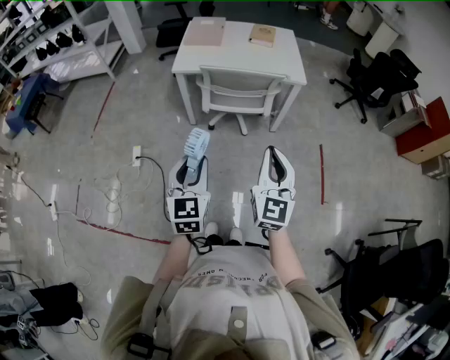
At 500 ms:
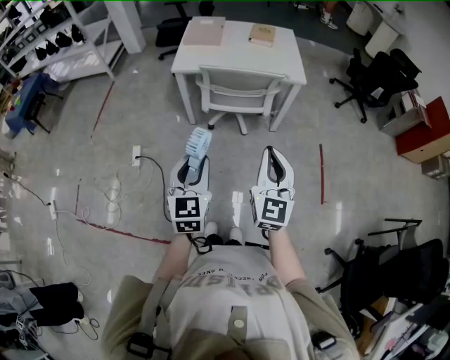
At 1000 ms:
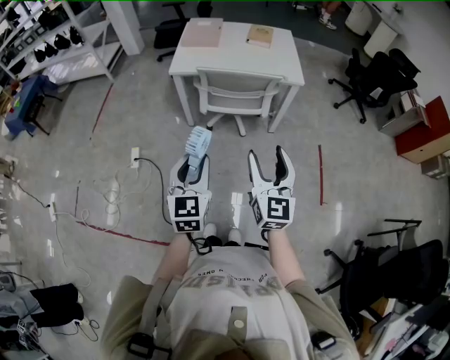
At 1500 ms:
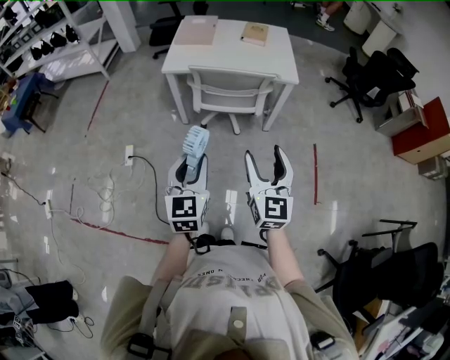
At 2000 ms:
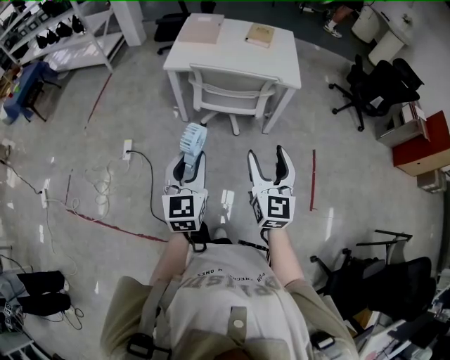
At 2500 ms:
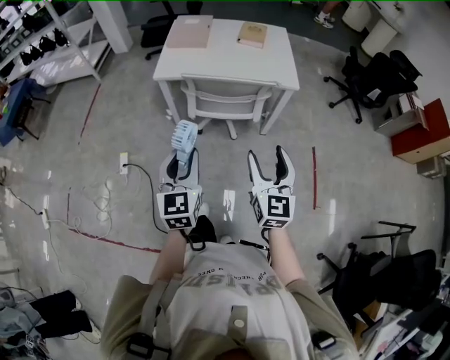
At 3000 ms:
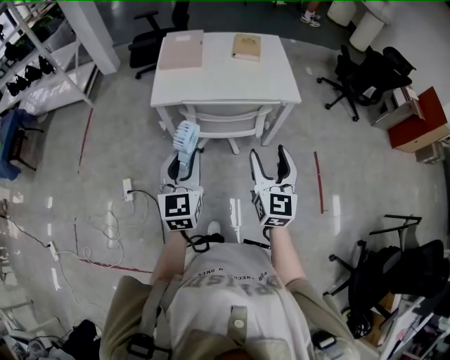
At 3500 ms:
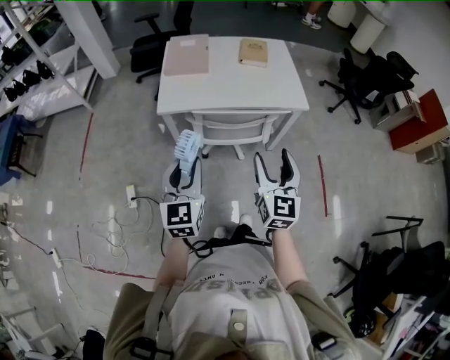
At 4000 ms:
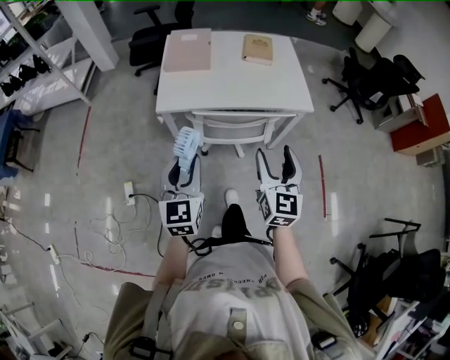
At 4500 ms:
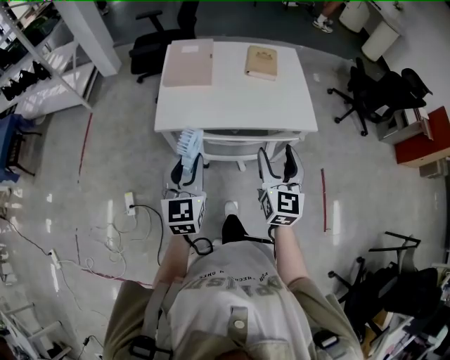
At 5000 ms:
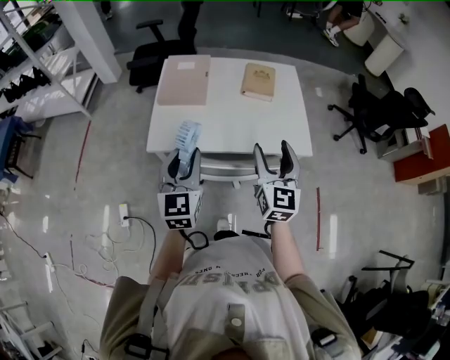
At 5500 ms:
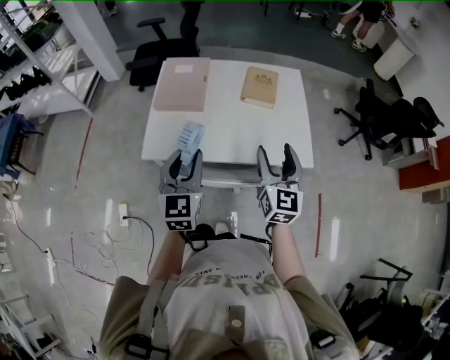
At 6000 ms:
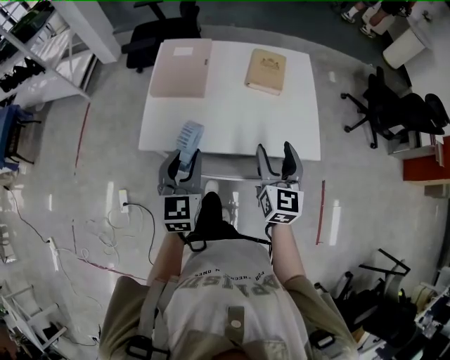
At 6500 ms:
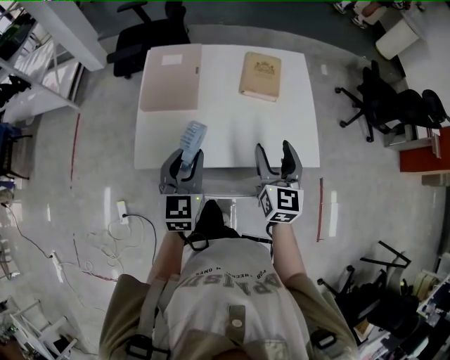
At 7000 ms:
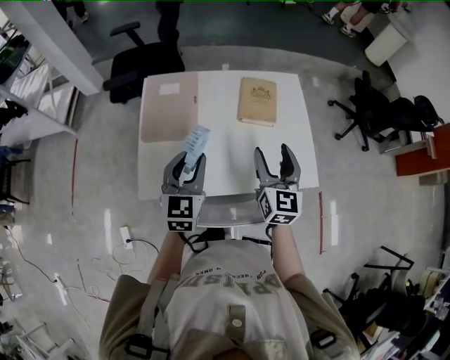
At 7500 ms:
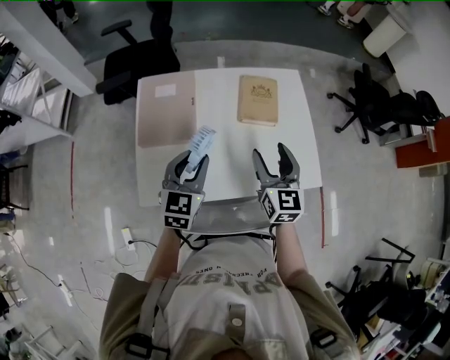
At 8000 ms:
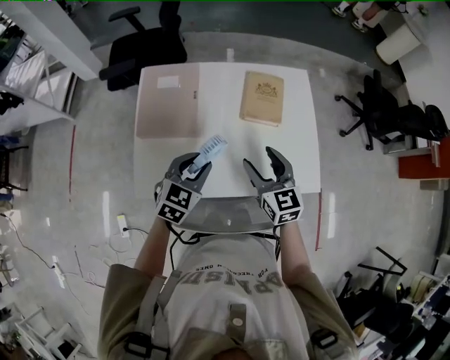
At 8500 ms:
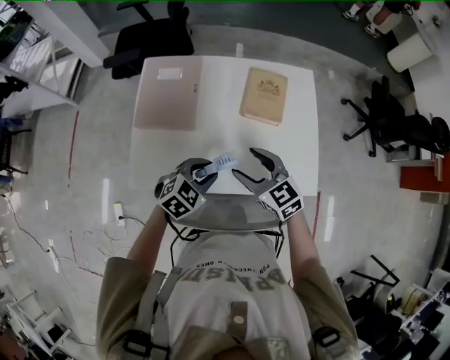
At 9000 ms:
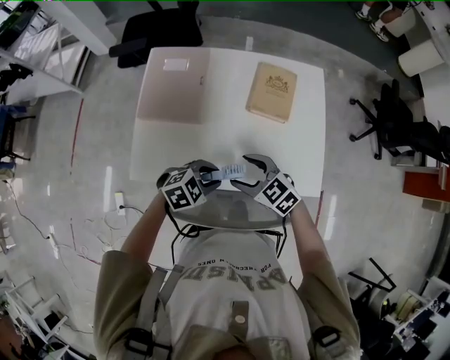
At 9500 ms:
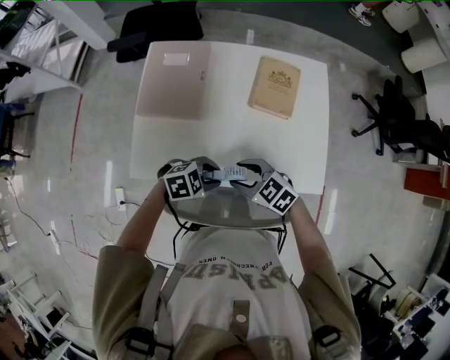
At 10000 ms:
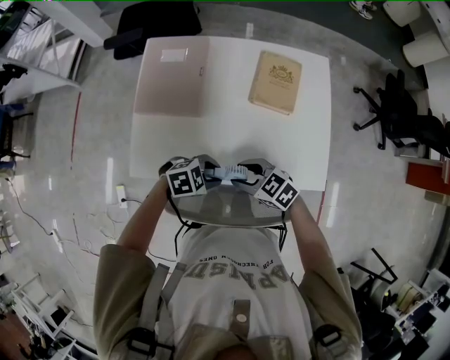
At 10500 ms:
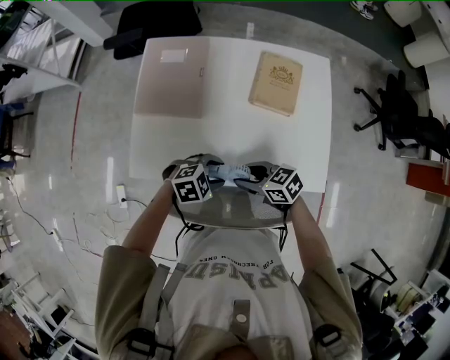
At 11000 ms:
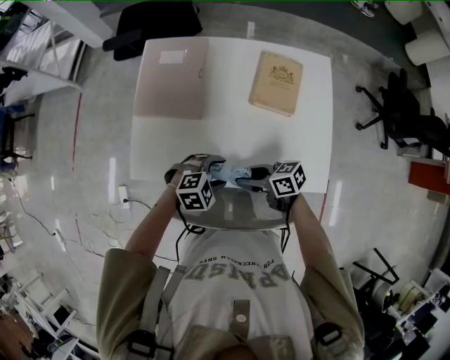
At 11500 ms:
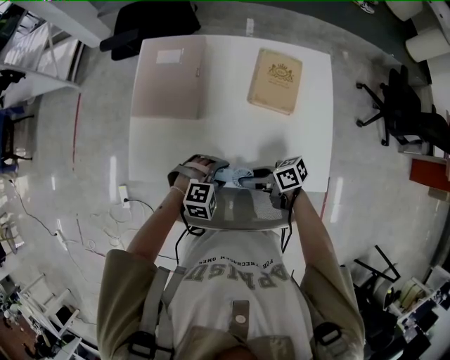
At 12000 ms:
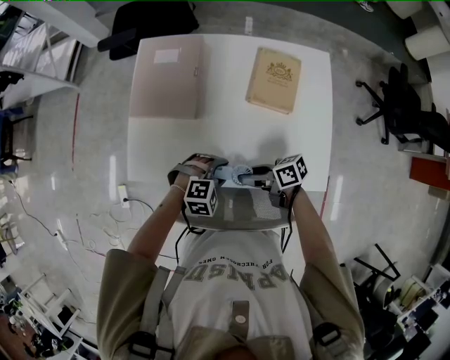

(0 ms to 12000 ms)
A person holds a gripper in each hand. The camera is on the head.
0 ms - 2000 ms: Both grippers travel together to the right, approximately 5 cm. The right gripper opens.
2000 ms - 4000 ms: The right gripper travels forward by about 25 cm. The left gripper heads forward and to the left, covering some 35 cm.
4000 ms - 6000 ms: Both grippers travel together forward, about 30 cm.
6000 ms - 8000 ms: The right gripper is displaced forward by about 15 cm, while the left gripper shifts some 20 cm forward and downward, and swivels some 40 degrees.
8000 ms - 10000 ms: Both grippers move downward, roughly 10 cm. The right gripper rotates about 50 degrees. Meanwhile the left gripper turns by some 50 degrees.
10000 ms - 12000 ms: The left gripper swivels some 30 degrees; the right gripper shifts by some 5 cm, and rolls clockwise, seen from behind, by about 50 degrees.

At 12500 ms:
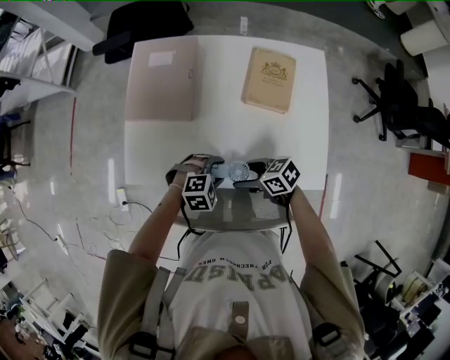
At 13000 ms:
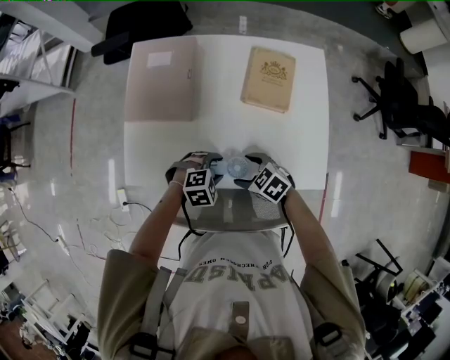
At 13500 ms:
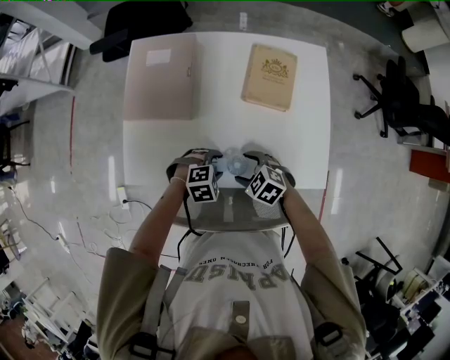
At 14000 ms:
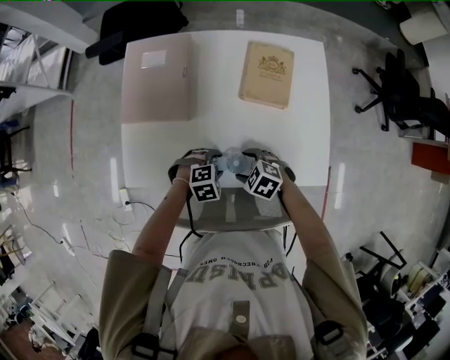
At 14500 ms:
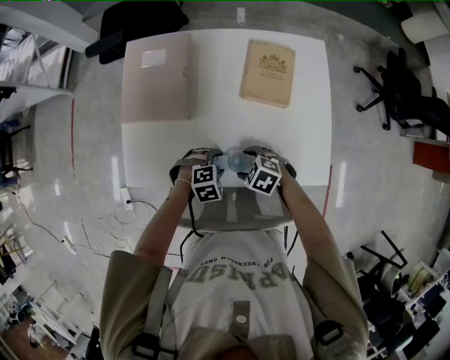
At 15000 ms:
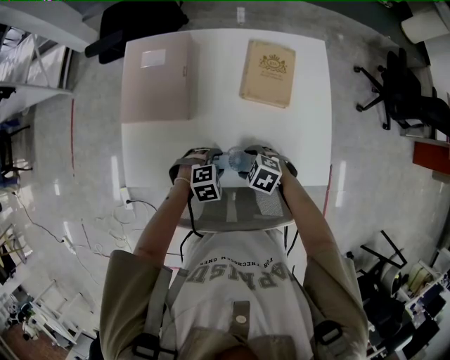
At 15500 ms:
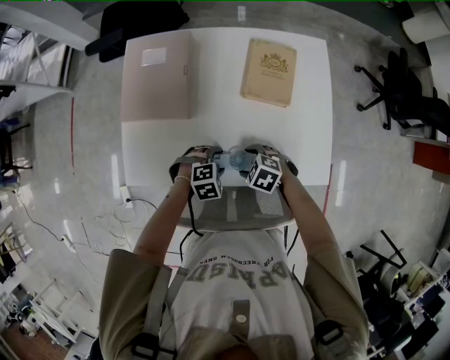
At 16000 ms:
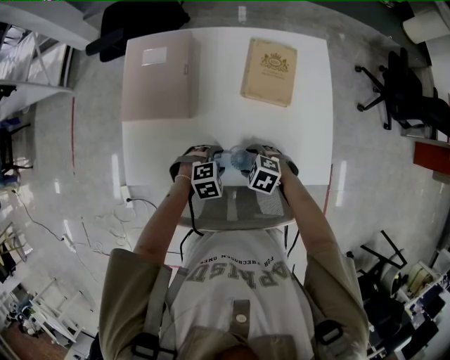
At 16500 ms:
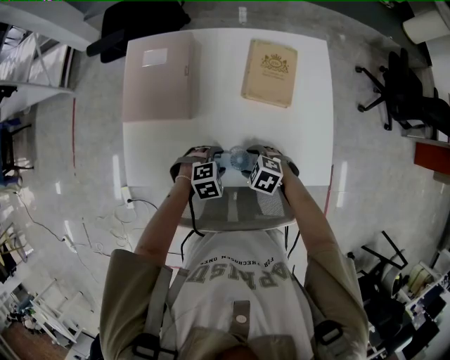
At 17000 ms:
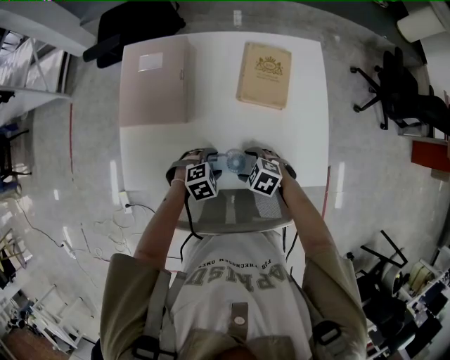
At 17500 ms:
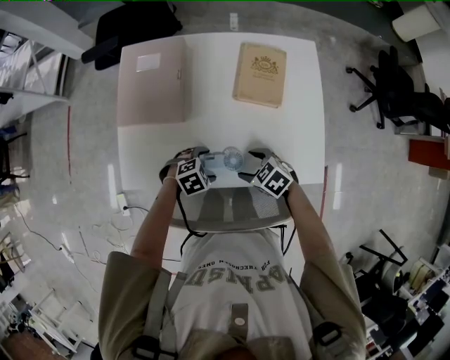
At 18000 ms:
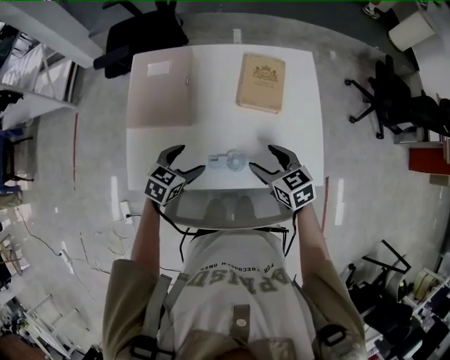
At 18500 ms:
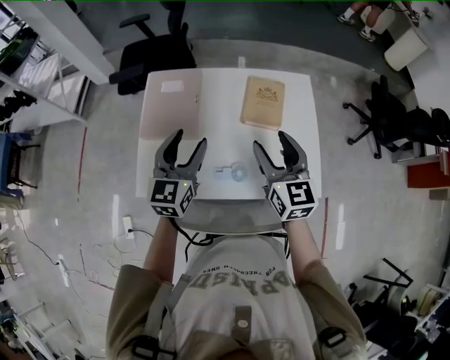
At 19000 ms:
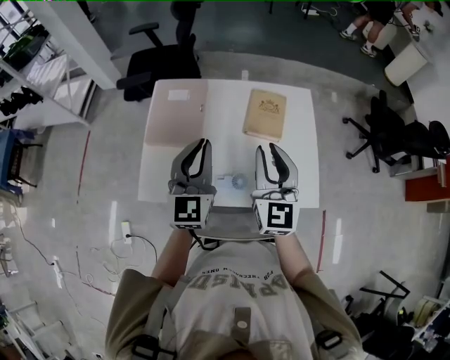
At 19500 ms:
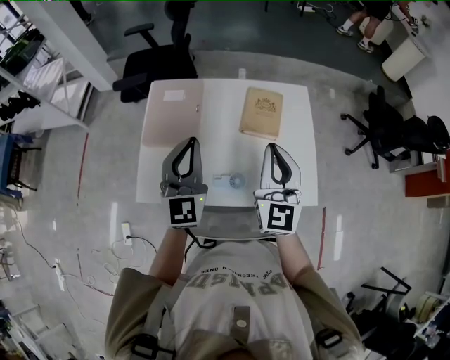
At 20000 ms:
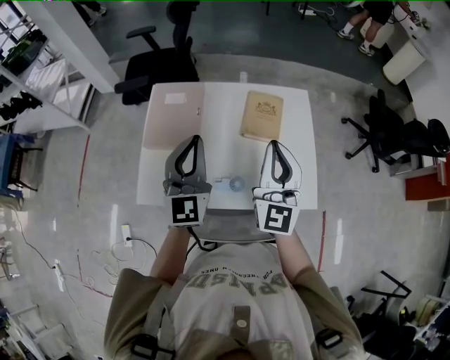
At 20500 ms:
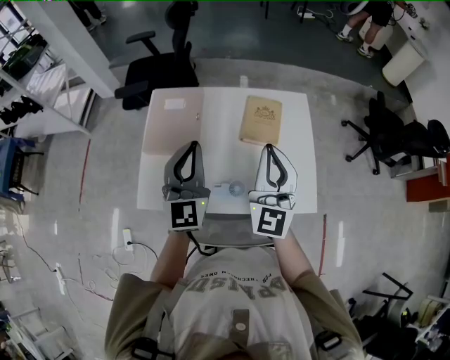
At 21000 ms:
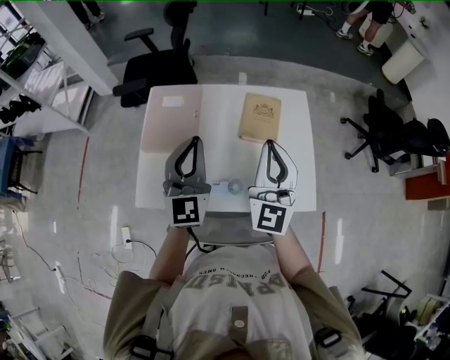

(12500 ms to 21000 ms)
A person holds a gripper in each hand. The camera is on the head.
12500 ms - 14500 ms: The left gripper moves some 5 cm, while the right gripper heads downward, covering some 5 cm, and rotates about 40 degrees.
14500 ms - 16500 ms: The grippers move only a little.
16500 ms - 19000 ms: Both grippers travel together upward, some 40 cm. The left gripper tips its fingers upward by some 70 degrees, and closes. Meanwhile the right gripper tilts its fingers about 70 degrees upward, and closes up.
19000 ms - 21000 ms: The grippers make only small movements.

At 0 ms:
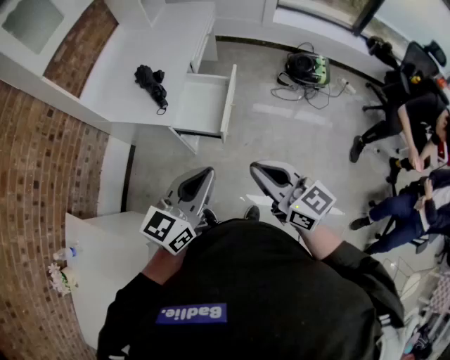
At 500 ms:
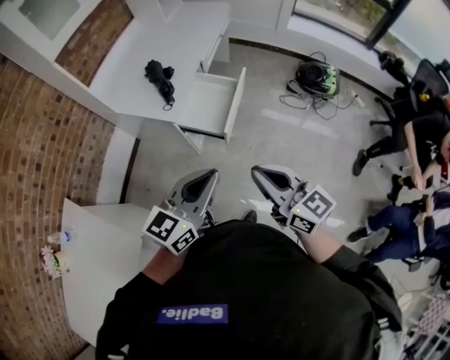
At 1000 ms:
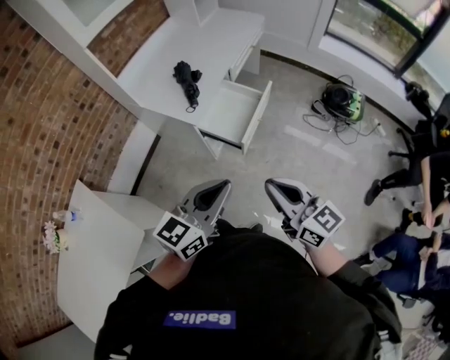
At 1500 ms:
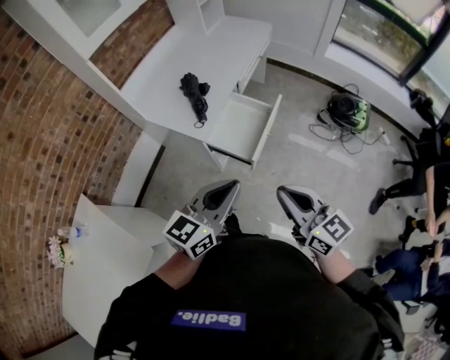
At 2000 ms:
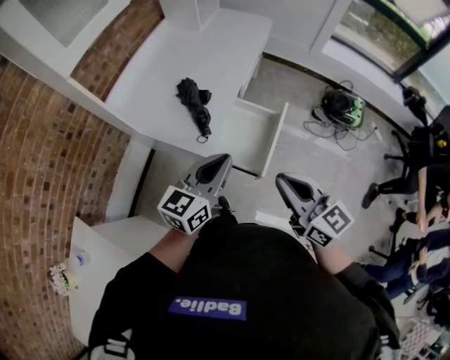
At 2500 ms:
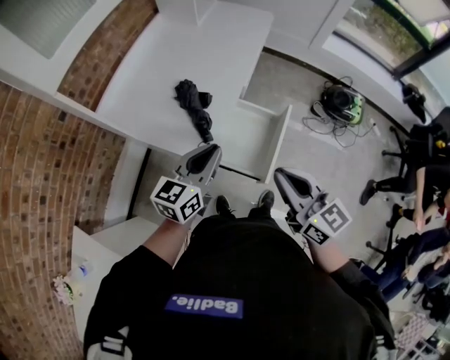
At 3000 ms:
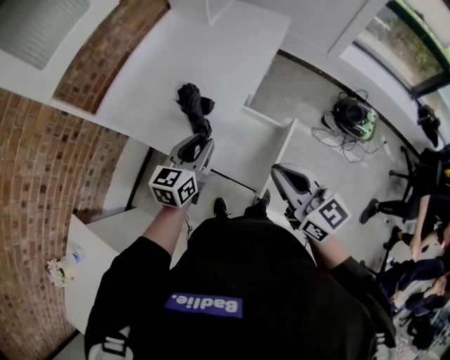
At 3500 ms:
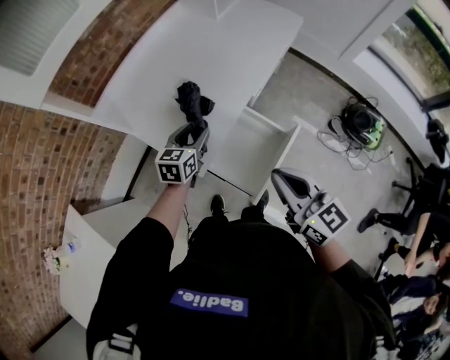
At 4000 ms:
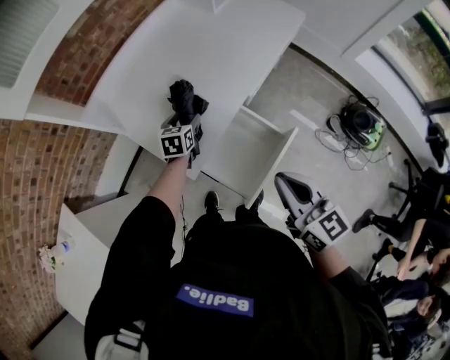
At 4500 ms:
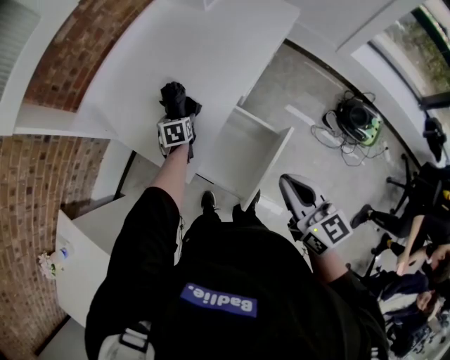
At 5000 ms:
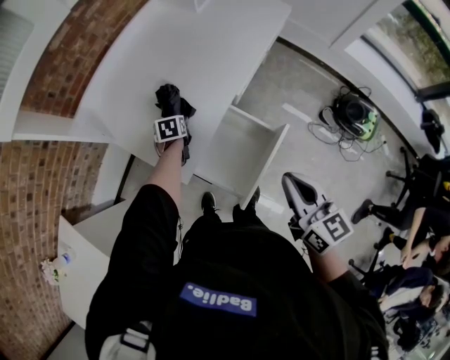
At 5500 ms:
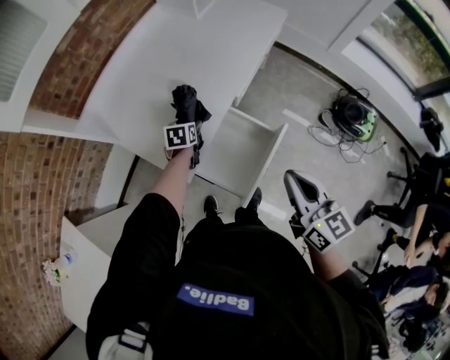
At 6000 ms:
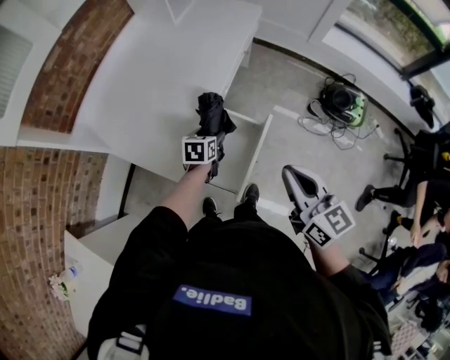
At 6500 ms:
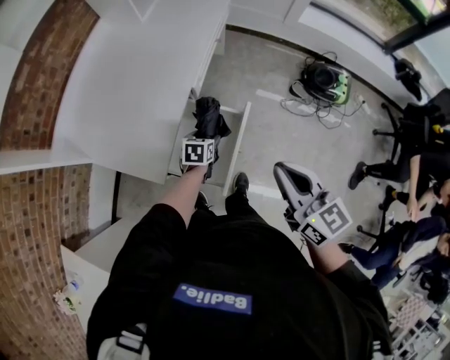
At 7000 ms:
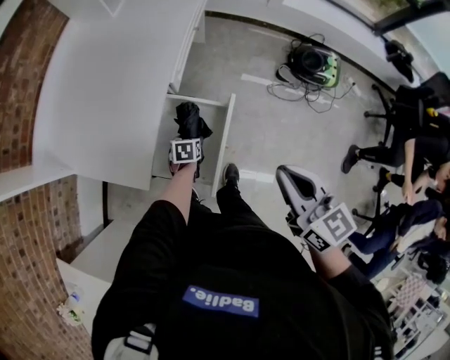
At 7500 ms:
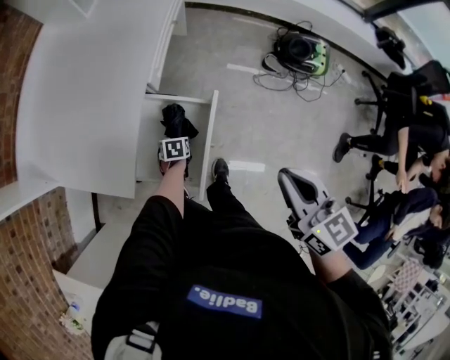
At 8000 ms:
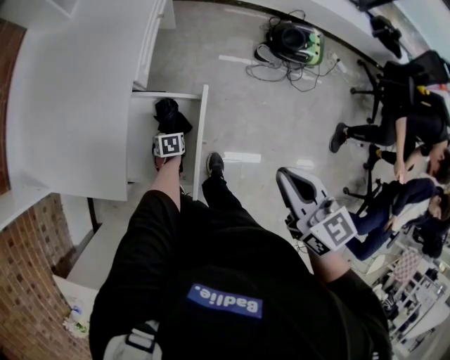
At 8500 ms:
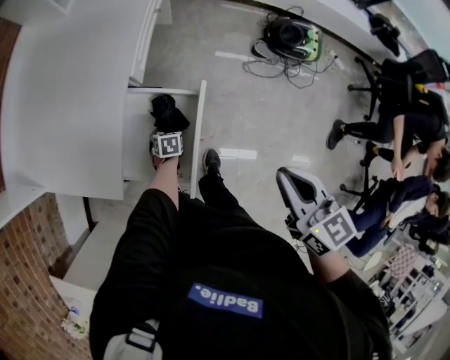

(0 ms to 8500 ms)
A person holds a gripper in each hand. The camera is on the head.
0 ms - 2000 ms: Both grippers travel together forward, roughly 20 cm.
2000 ms - 4000 ms: The left gripper heads forward and downward, covering some 40 cm, points its fingers roughly 40 degrees further downward, and opens its fingers. Meanwhile the right gripper heads forward and to the right, covering roughly 20 cm.
4000 ms - 6500 ms: The right gripper shifts by about 10 cm. The left gripper moves up and down over roughly 10 cm, changing direction 2 times, and turns by about 30 degrees.
6500 ms - 8500 ms: The left gripper moves downward, some 20 cm; the right gripper goes roughly 10 cm to the right and downward.
